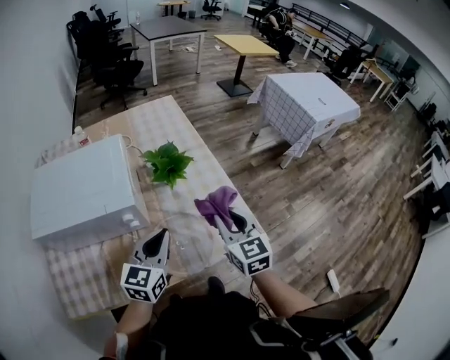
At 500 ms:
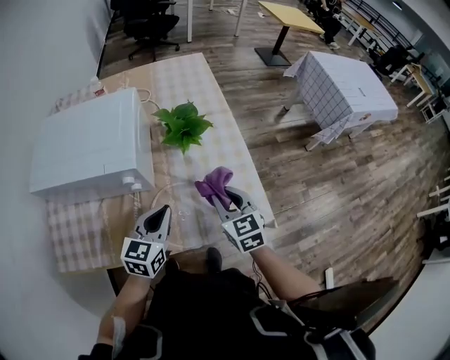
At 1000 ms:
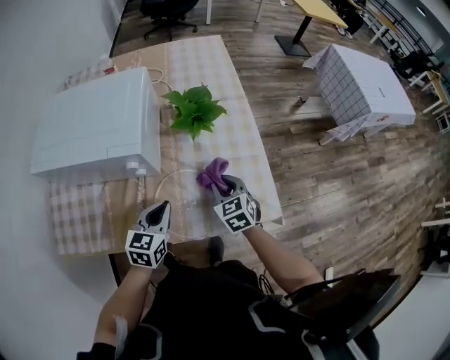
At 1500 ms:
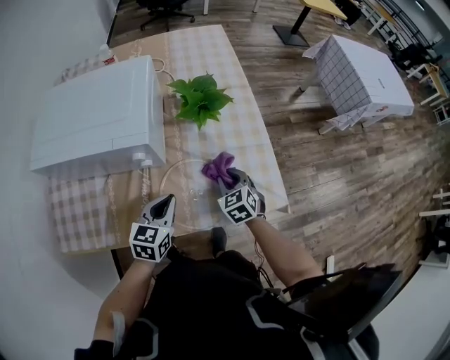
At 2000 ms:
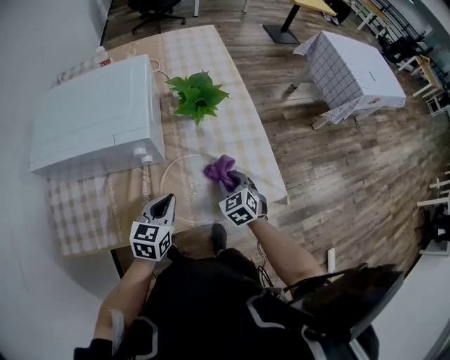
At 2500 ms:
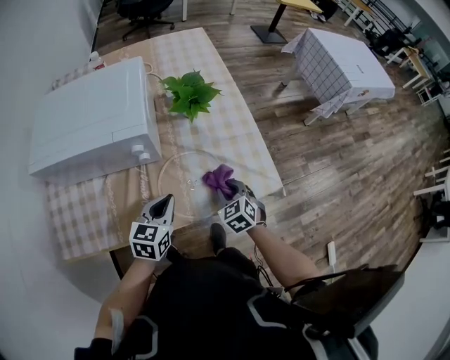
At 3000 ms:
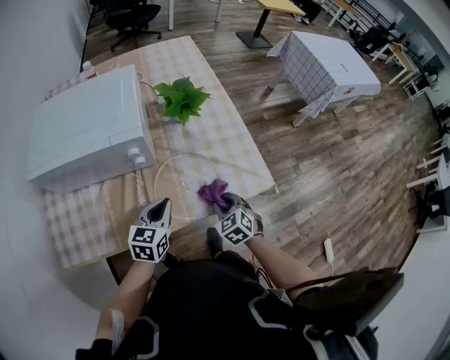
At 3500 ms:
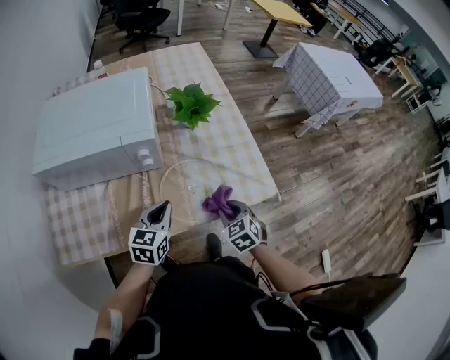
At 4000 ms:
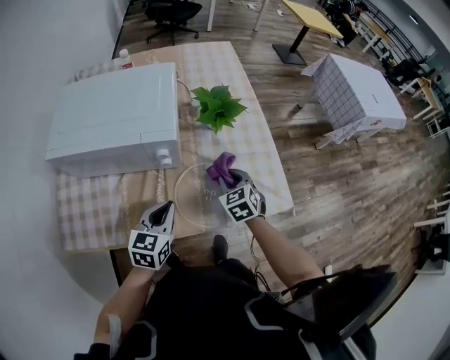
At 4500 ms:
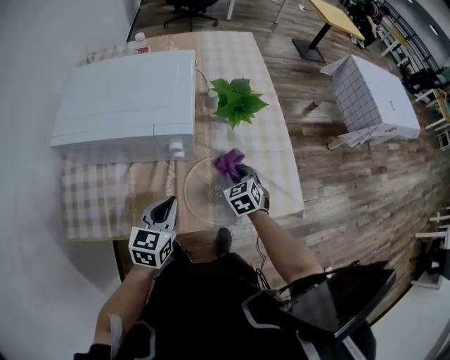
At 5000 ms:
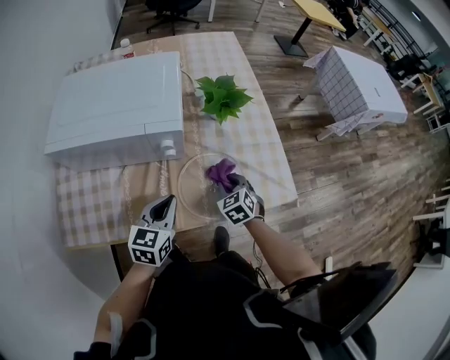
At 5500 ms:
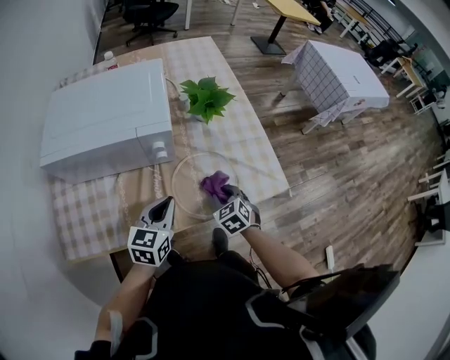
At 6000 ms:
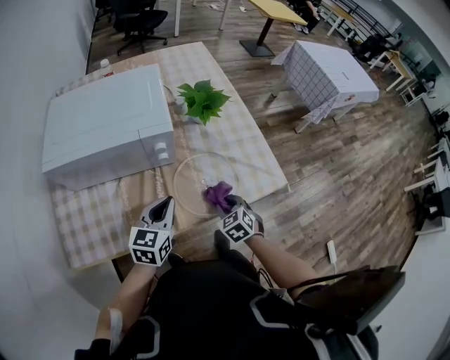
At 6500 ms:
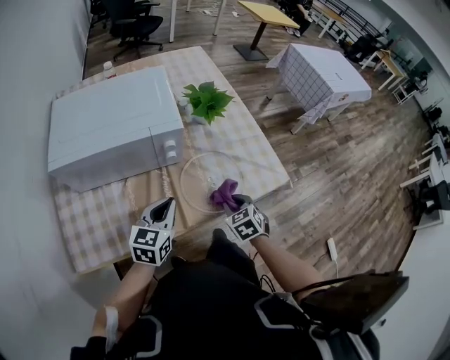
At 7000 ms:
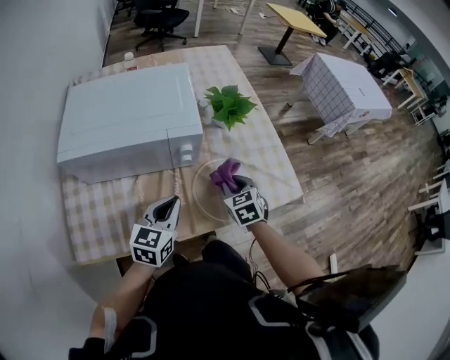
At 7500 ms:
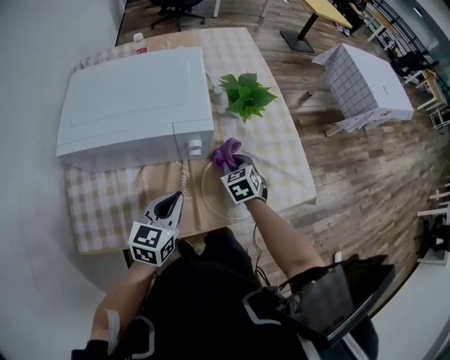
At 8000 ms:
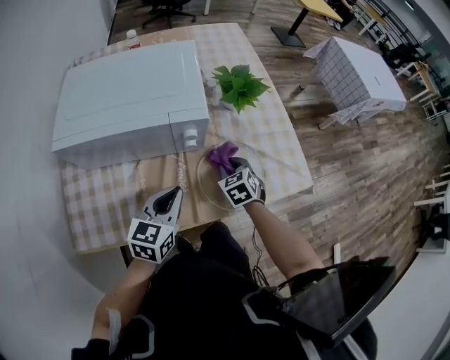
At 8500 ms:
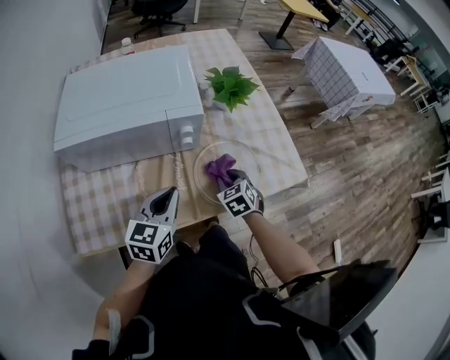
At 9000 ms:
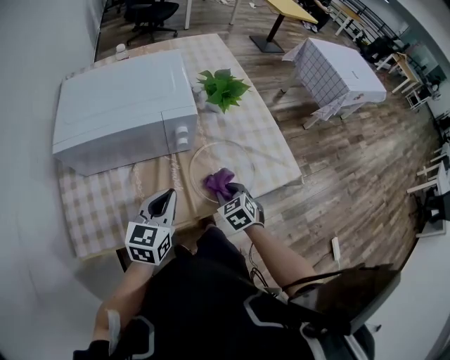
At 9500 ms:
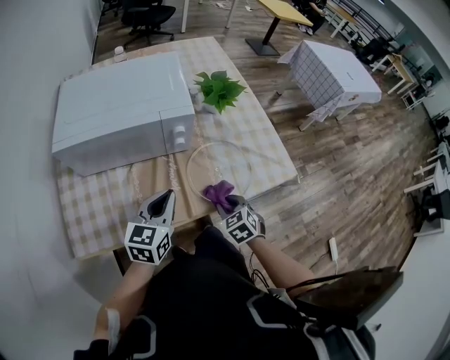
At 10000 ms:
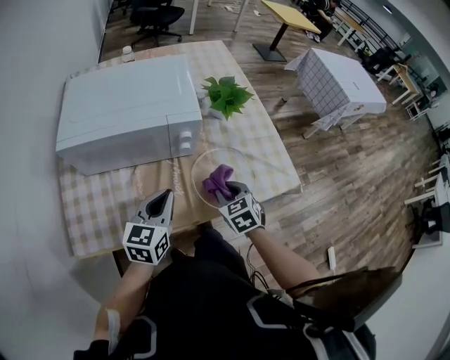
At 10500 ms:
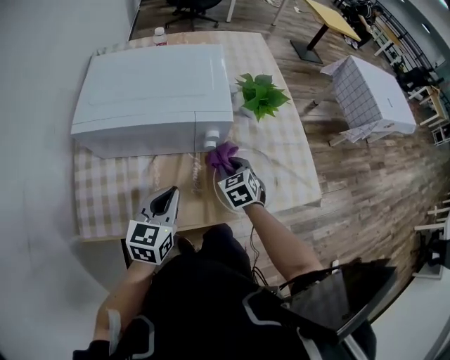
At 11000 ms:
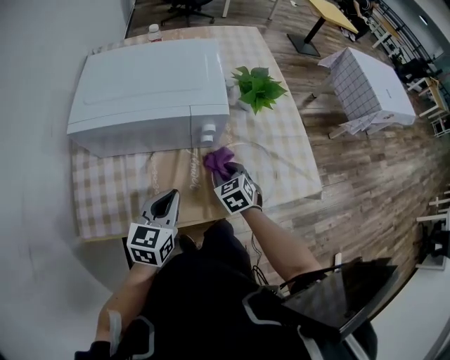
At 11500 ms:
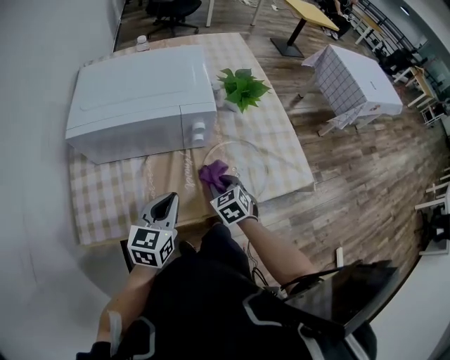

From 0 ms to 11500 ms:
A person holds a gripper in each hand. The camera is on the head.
From 0 ms to 2000 ms: The right gripper heads downward, covering approximately 20 cm, and changes its angle by some 40 degrees. Meanwhile the left gripper shifts about 15 cm downward.
From 2000 ms to 4000 ms: The left gripper changes place by roughly 5 cm; the right gripper shifts approximately 5 cm to the left, and goes backward and returns, approximately 10 cm each way.
From 4000 ms to 6000 ms: The right gripper heads backward, covering roughly 15 cm.
From 6000 ms to 7500 ms: The right gripper is displaced forward and to the left by some 20 cm; the left gripper heads to the left, covering some 5 cm.
From 7500 ms to 9500 ms: The left gripper is displaced backward by roughly 5 cm, while the right gripper goes about 20 cm backward.
From 9500 ms to 11500 ms: The right gripper goes roughly 10 cm forward and to the left.

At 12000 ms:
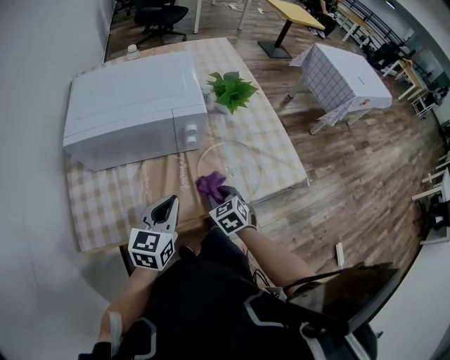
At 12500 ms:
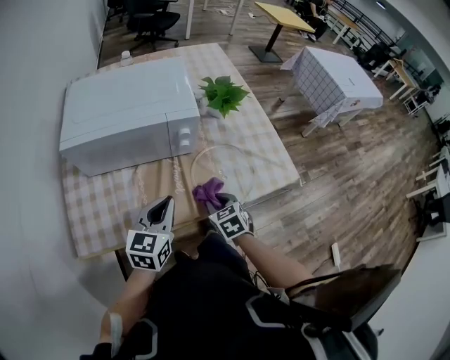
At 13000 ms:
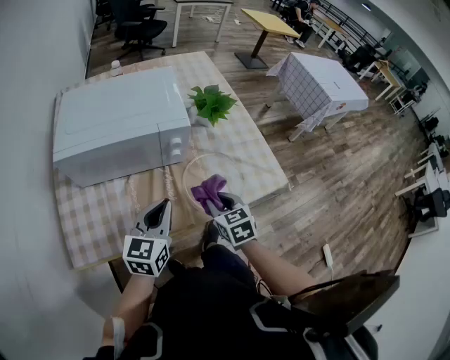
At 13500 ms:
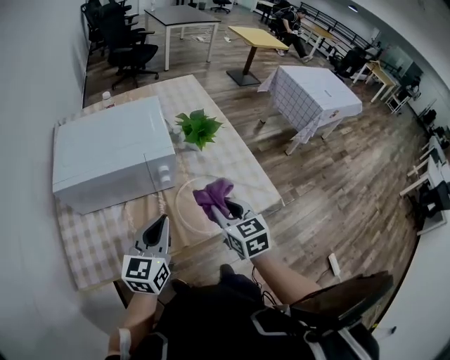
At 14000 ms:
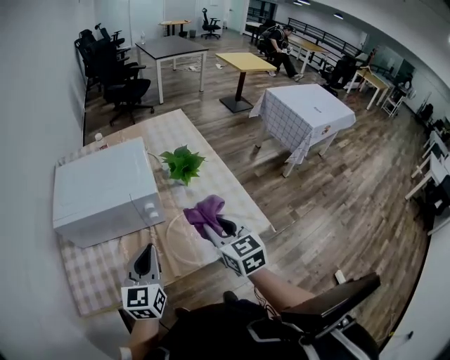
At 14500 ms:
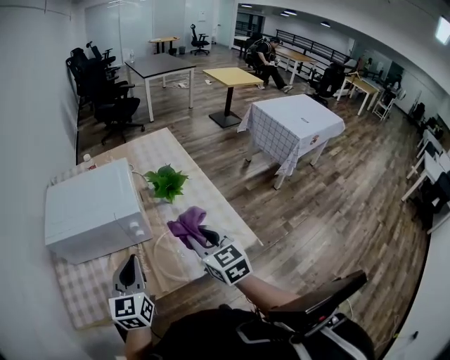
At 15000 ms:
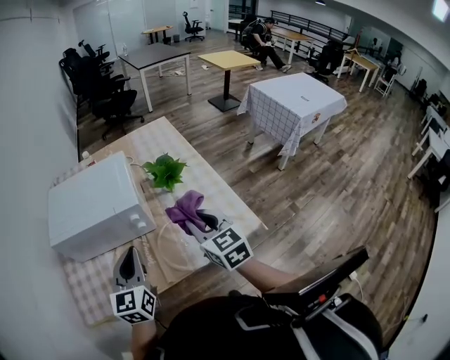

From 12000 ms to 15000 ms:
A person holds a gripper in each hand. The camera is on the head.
From 12000 ms to 13500 ms: The right gripper travels upward by roughly 20 cm, and swivels roughly 30 degrees. The left gripper heads upward, covering some 10 cm.
From 13500 ms to 15000 ms: The left gripper is displaced upward by roughly 5 cm, while the right gripper goes about 10 cm upward and to the right.

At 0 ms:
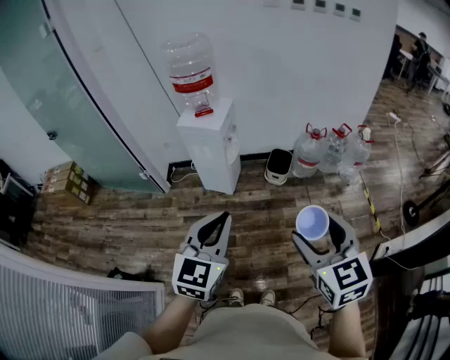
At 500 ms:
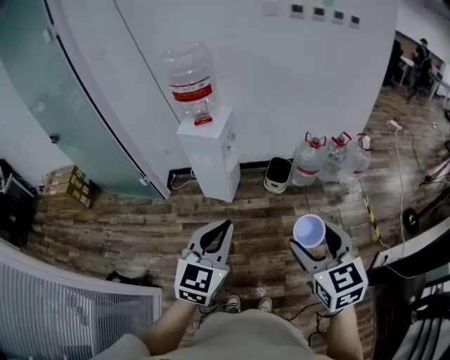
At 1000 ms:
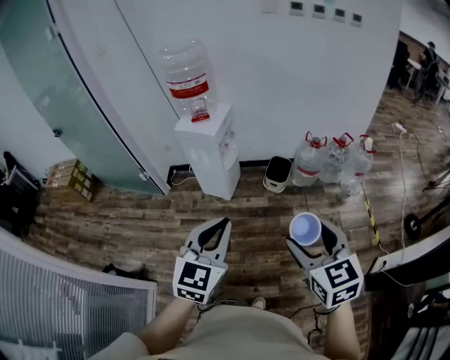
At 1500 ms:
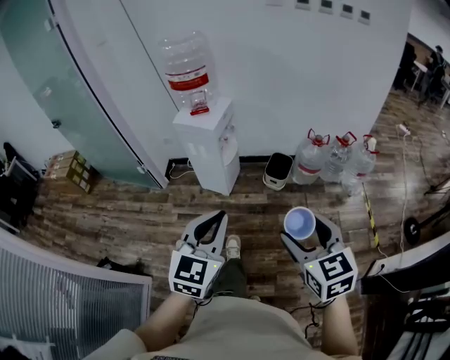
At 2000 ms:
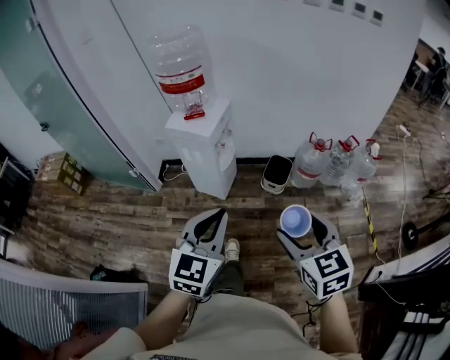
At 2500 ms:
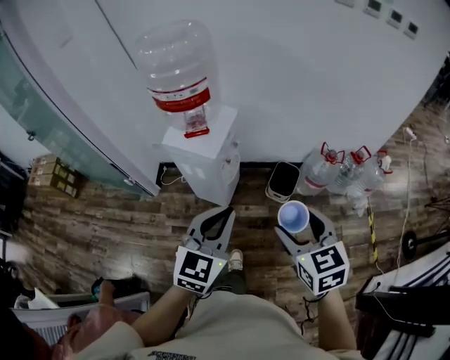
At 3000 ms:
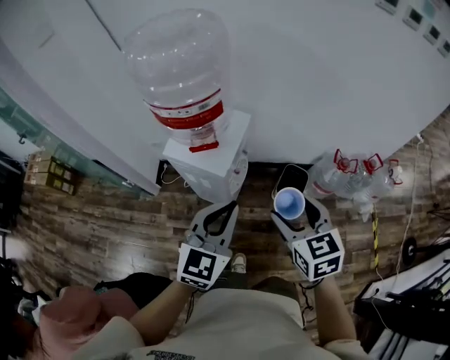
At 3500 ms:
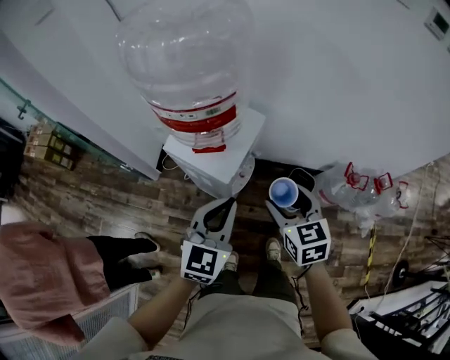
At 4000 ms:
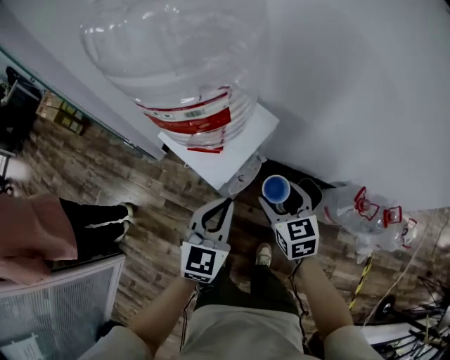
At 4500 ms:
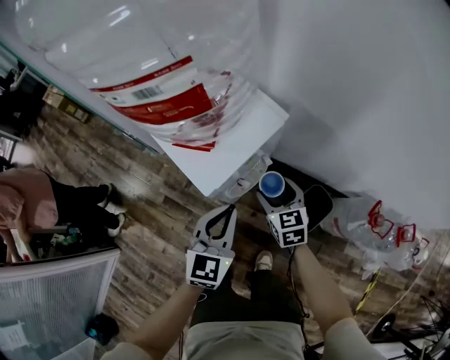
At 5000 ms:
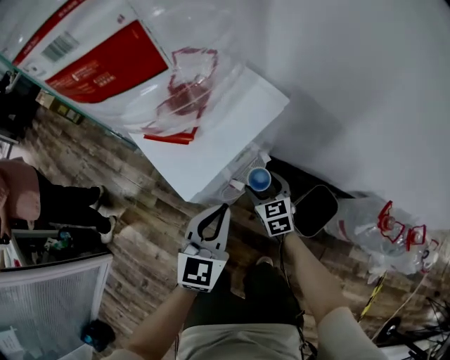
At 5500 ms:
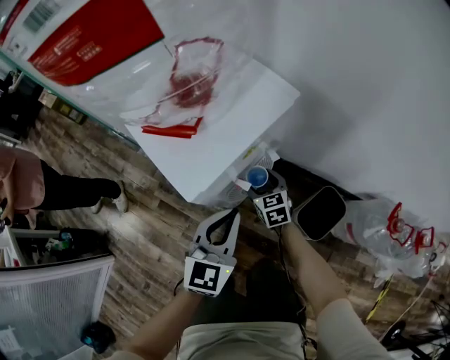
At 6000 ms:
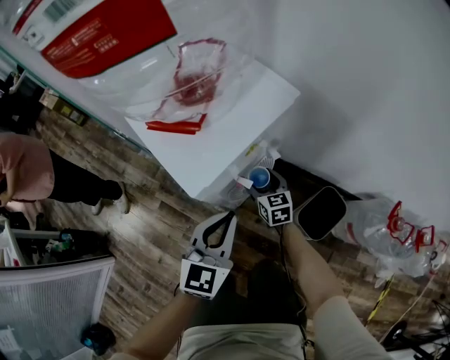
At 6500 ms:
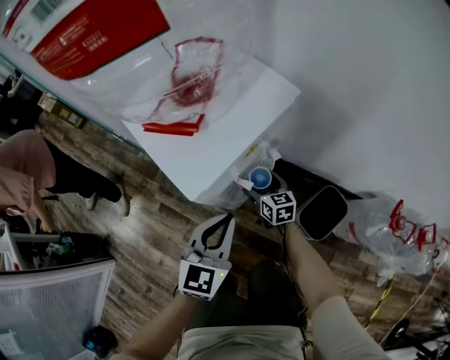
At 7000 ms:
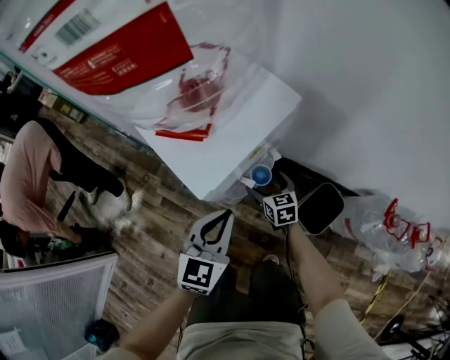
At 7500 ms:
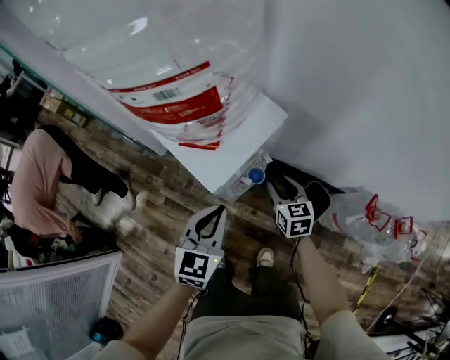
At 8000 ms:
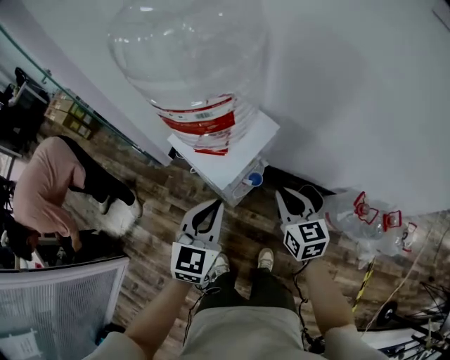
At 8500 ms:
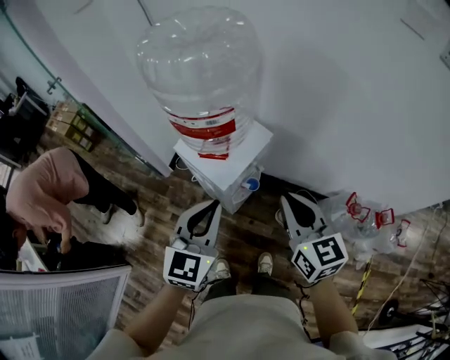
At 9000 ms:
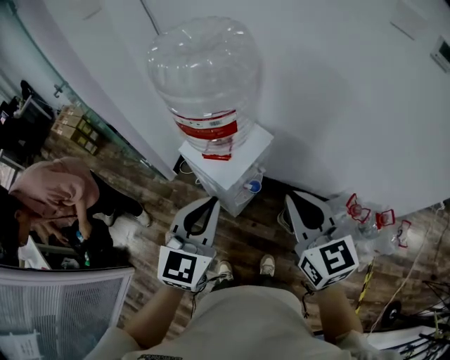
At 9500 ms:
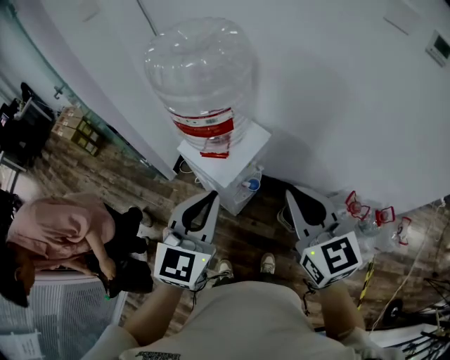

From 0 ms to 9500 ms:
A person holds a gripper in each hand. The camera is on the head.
From 0 ms to 2000 ms: The left gripper moves forward and to the right, approximately 15 cm. Meanwhile the right gripper is displaced forward and downward by approximately 15 cm.
From 2000 ms to 4000 ms: The two grippers travel together, forward, some 50 cm. The left gripper rotates approximately 20 degrees.
From 4000 ms to 5500 ms: The right gripper heads downward, covering approximately 35 cm. The left gripper goes approximately 20 cm downward.
From 5500 ms to 7500 ms: The right gripper heads upward, covering roughly 20 cm, and closes, while the left gripper heads upward, covering roughly 10 cm.
From 7500 ms to 9500 ms: Both grippers move upward, about 35 cm. The right gripper changes its angle by roughly 20 degrees.

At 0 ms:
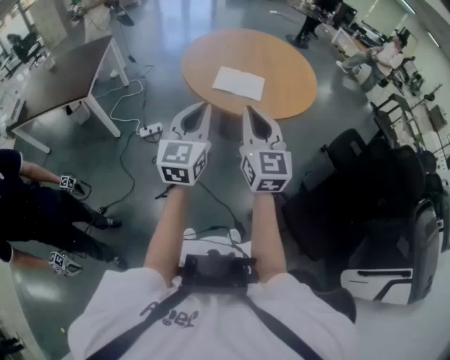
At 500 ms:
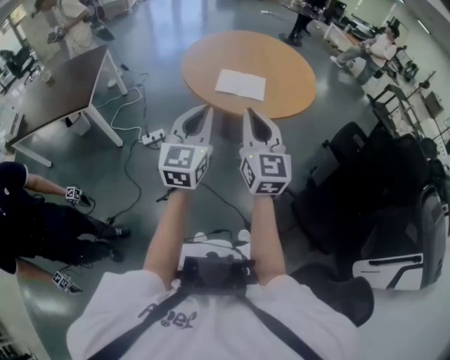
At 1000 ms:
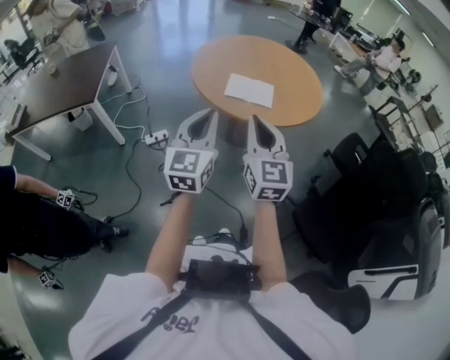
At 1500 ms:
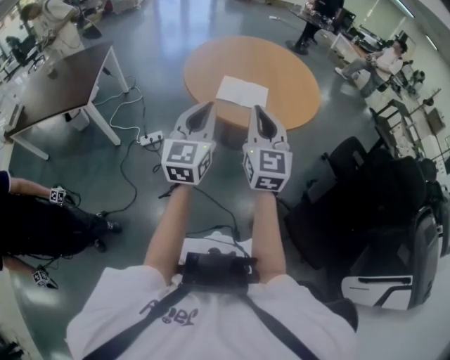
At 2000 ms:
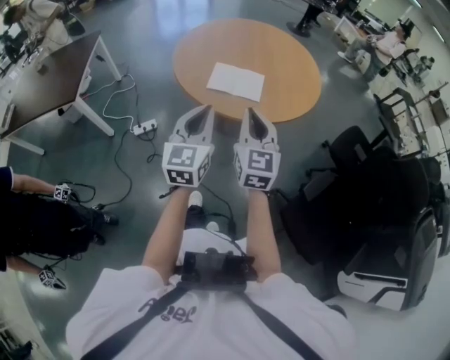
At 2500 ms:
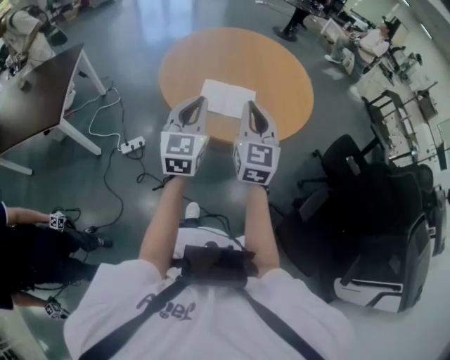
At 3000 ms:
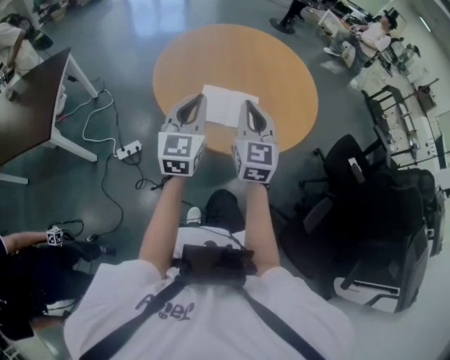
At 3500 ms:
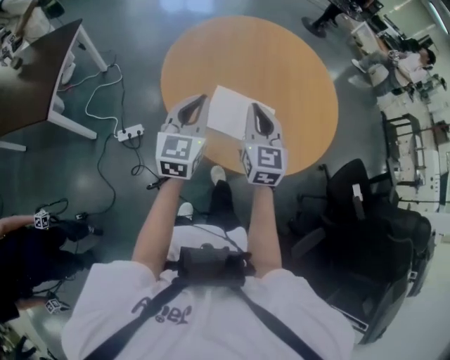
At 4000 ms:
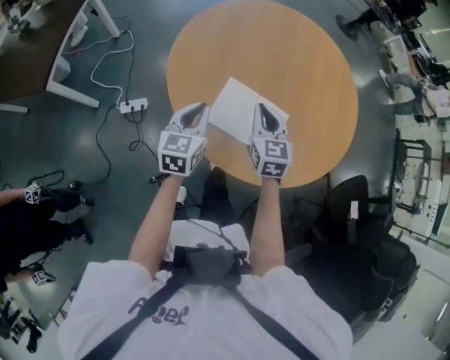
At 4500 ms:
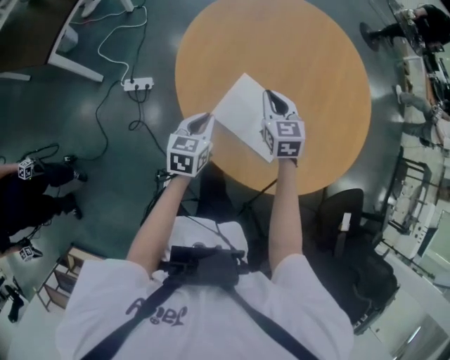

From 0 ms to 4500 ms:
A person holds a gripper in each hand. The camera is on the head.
From 0 ms to 2000 ms: The right gripper is displaced forward and downward by about 15 cm; the left gripper is displaced forward by approximately 10 cm.
From 2000 ms to 4500 ms: Both grippers travel together forward and downward, about 50 cm. The right gripper angles its fingers downward, by some 30 degrees, while the left gripper tips its fingers downward by some 30 degrees.
